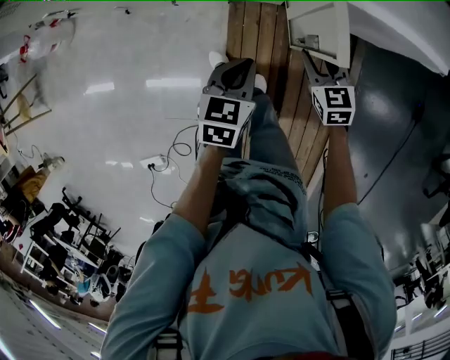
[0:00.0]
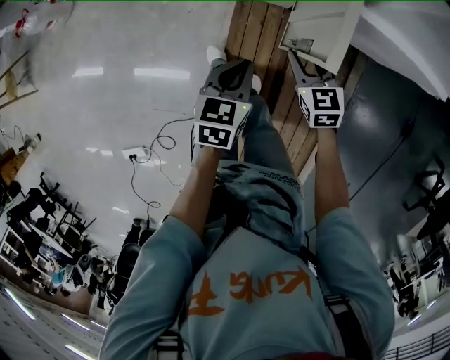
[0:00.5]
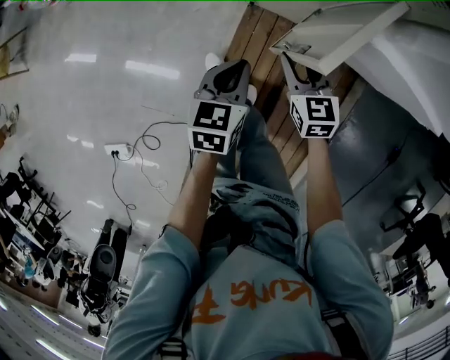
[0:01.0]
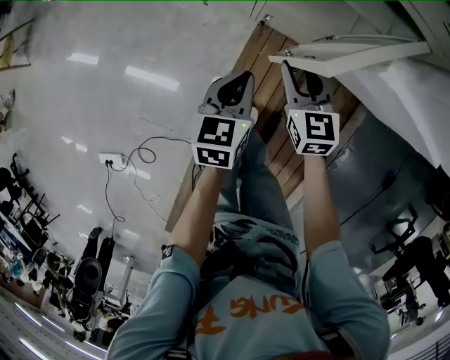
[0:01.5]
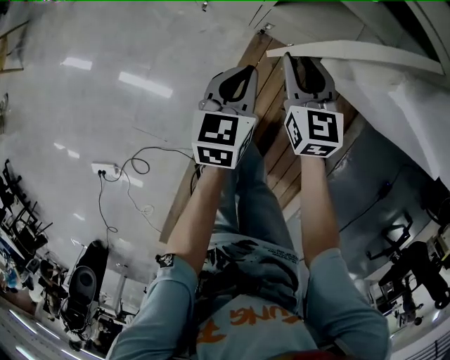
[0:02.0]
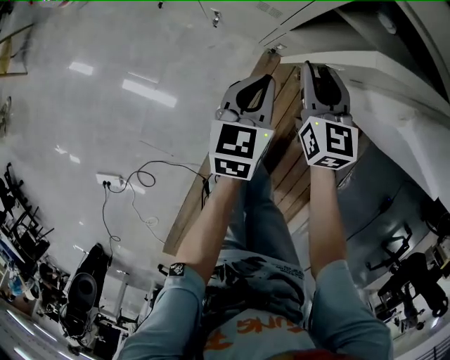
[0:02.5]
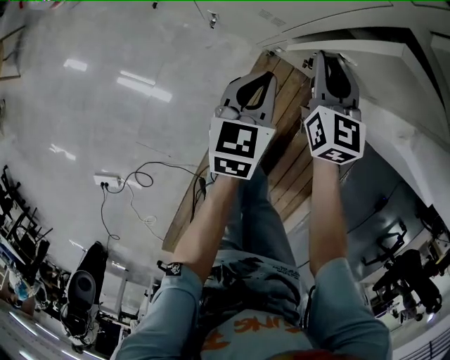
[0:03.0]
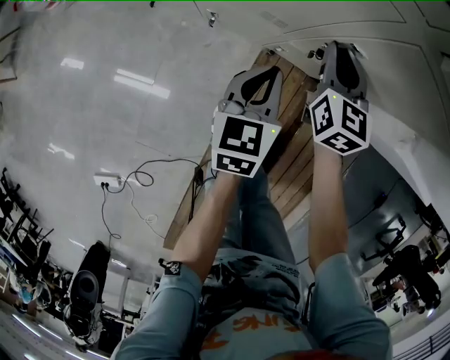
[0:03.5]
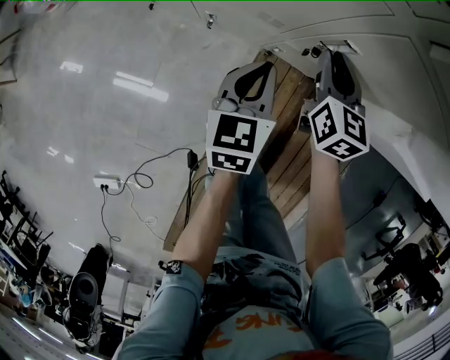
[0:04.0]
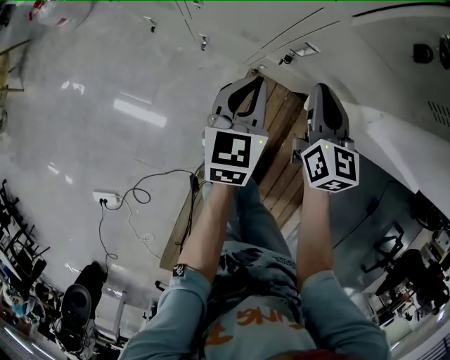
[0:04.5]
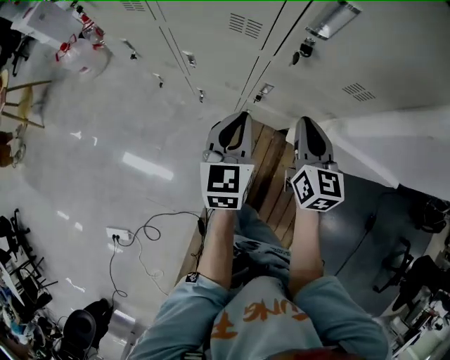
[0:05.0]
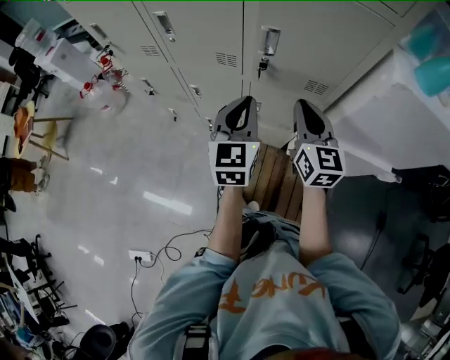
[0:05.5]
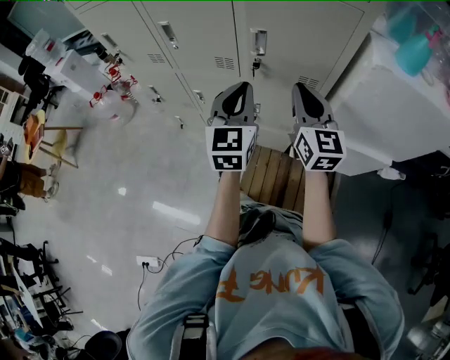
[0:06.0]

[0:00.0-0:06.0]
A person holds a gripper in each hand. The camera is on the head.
0:00.0 to 0:02.0: The right gripper moves to the left and forward, roughly 25 cm, while the left gripper travels to the left, forward and downward by some 20 cm, and turns by approximately 30 degrees.
0:02.0 to 0:04.0: The left gripper is displaced forward and to the left by roughly 15 cm. Meanwhile the right gripper is displaced forward by about 15 cm.
0:04.0 to 0:06.0: Both grippers move upward, some 50 cm. The left gripper changes its angle by about 40 degrees. Meanwhile the right gripper turns by roughly 30 degrees.

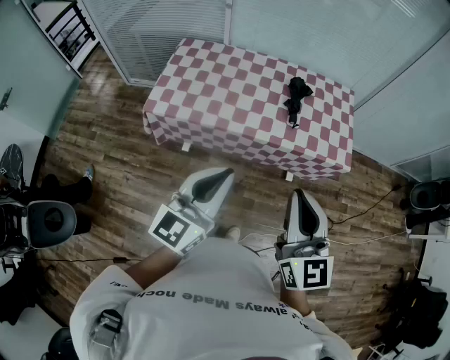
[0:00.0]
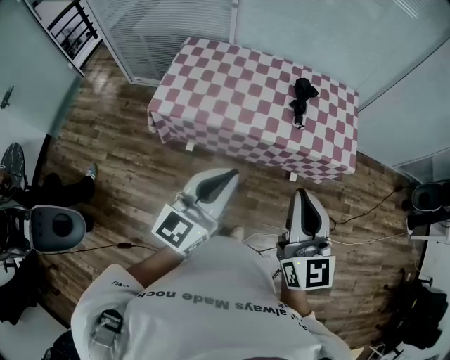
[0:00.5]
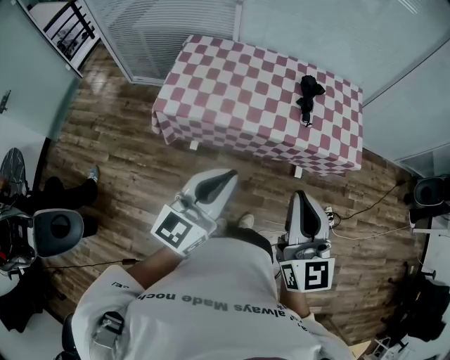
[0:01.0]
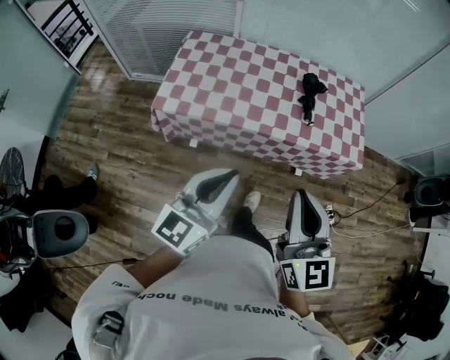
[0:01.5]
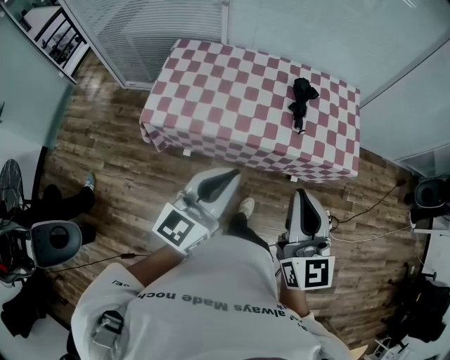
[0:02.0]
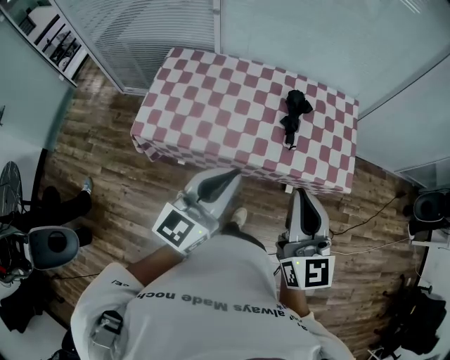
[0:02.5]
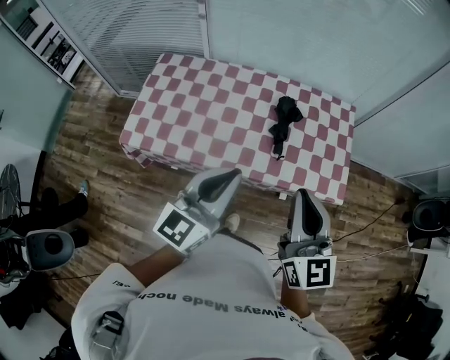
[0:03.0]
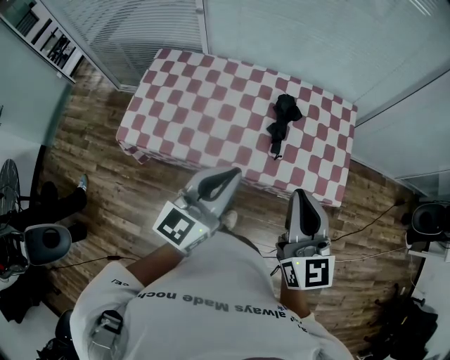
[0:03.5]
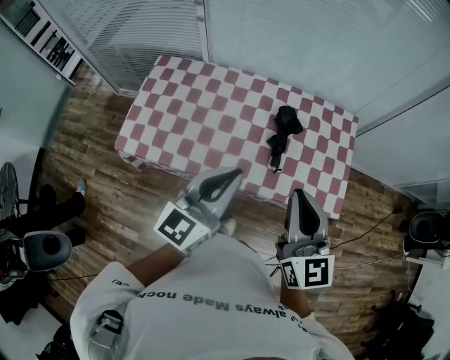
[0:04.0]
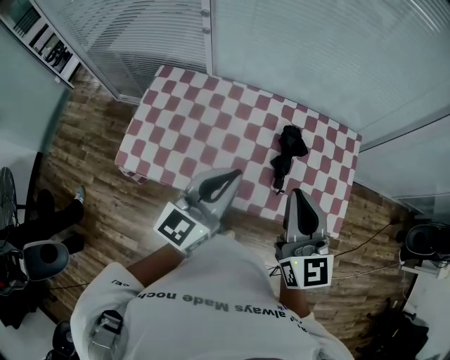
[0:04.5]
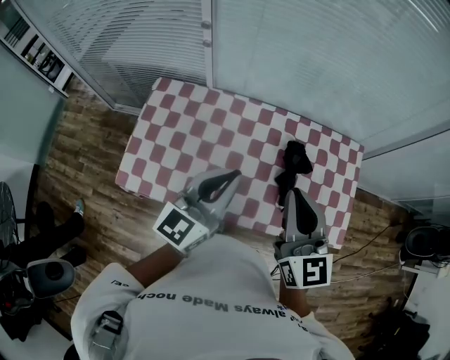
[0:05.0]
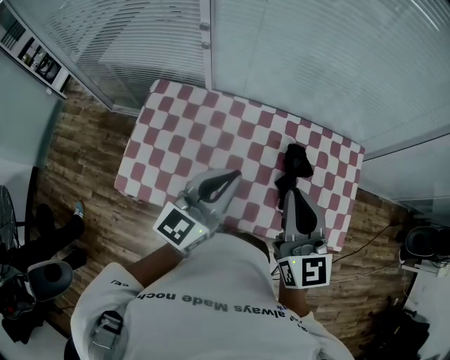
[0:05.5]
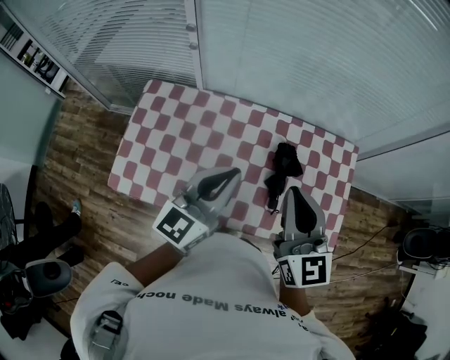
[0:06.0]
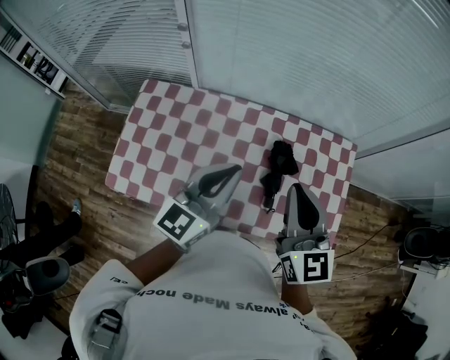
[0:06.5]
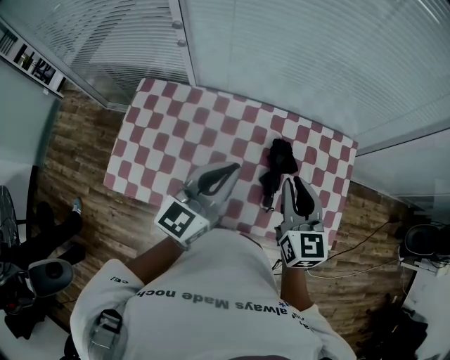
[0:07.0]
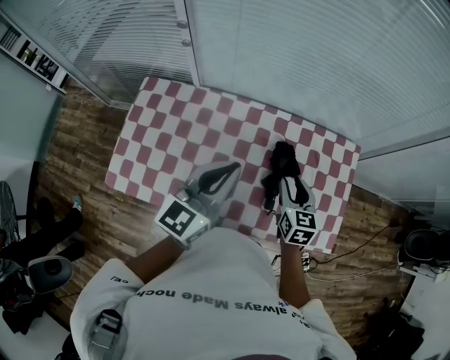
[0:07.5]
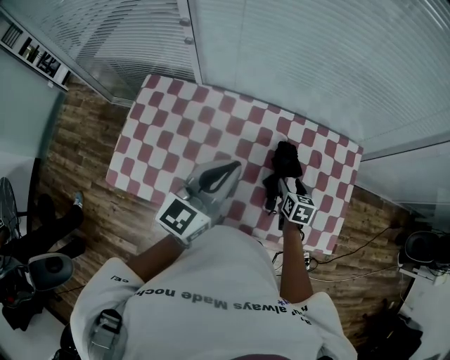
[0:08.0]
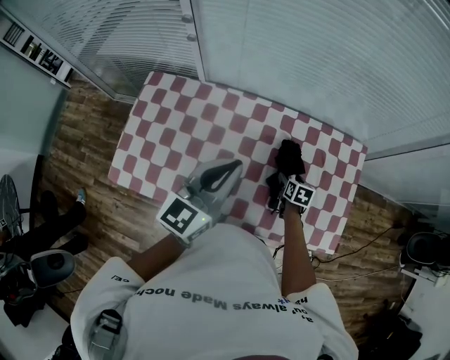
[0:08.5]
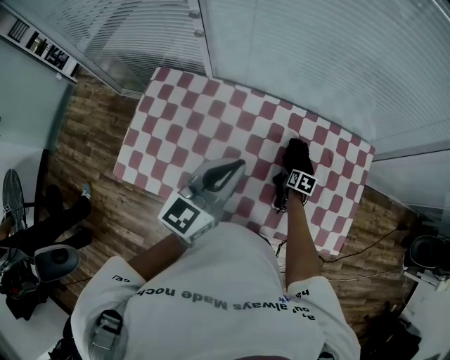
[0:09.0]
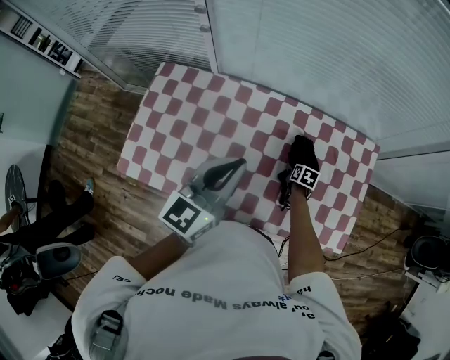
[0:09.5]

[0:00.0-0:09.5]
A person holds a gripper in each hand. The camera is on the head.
0:00.0 to 0:02.0: Both grippers move forward, about 10 cm.
0:02.0 to 0:04.0: The left gripper goes about 30 cm forward and to the right. Meanwhile the right gripper travels forward by roughly 25 cm.
0:04.0 to 0:05.5: The two grippers go some 25 cm forward and to the left.
0:05.5 to 0:07.5: The right gripper travels downward, to the right and forward by some 25 cm, turns by roughly 30 degrees, and opens up; the left gripper heads to the right and forward, covering approximately 10 cm.
0:07.5 to 0:09.5: The right gripper is displaced downward by about 25 cm, turns by approximately 40 degrees, and opens up.

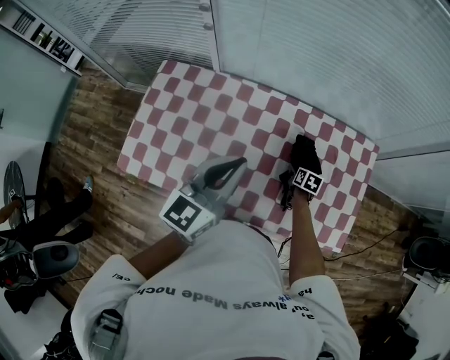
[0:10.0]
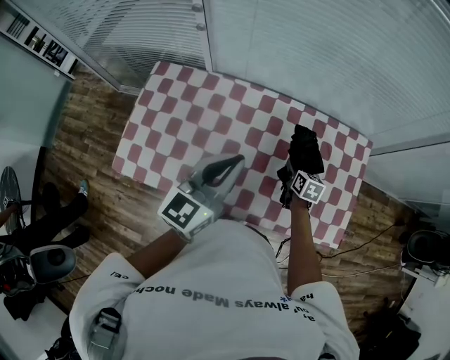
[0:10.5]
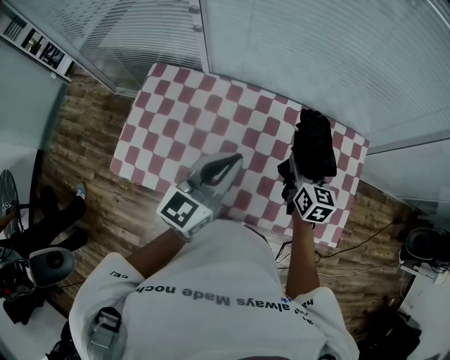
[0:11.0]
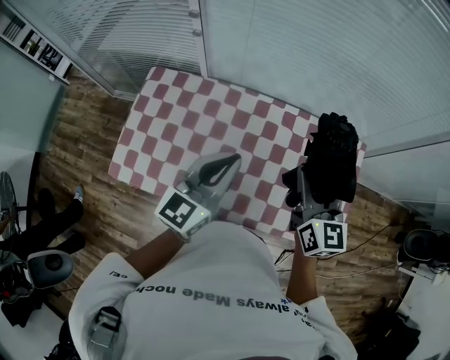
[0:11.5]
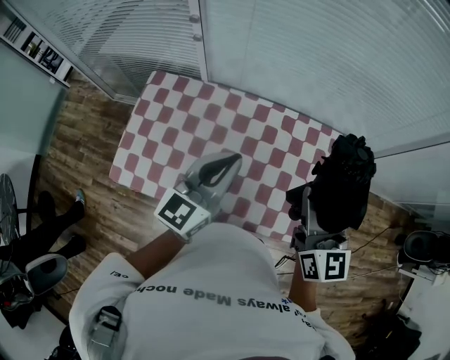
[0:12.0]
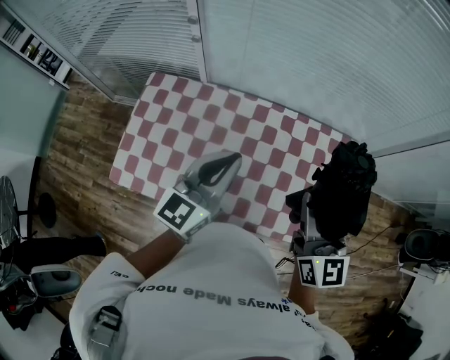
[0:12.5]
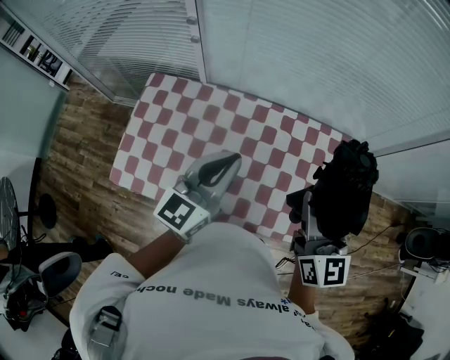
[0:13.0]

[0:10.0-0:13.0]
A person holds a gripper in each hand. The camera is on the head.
0:10.0 to 0:11.5: The right gripper travels upward by roughly 40 cm, and tilts its fingers approximately 50 degrees upward.
0:11.5 to 0:13.0: The right gripper is displaced upward by roughly 5 cm.

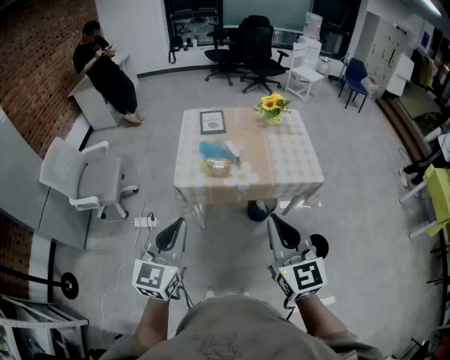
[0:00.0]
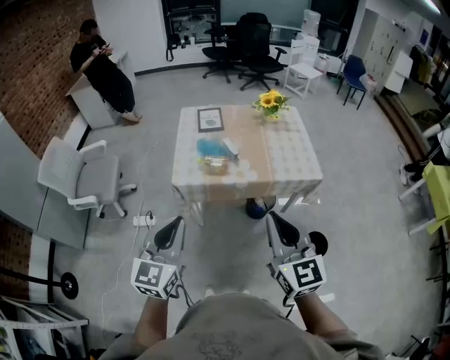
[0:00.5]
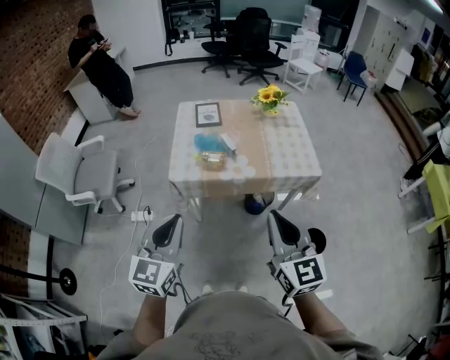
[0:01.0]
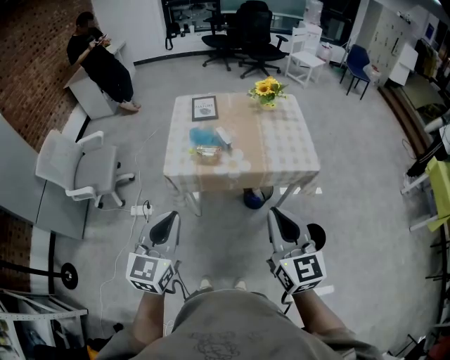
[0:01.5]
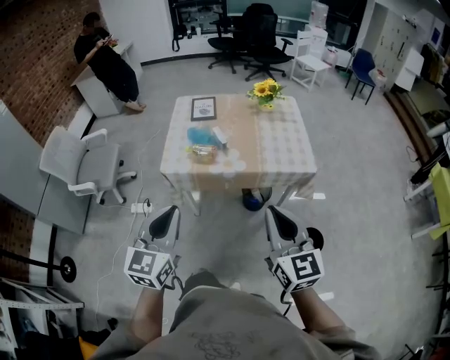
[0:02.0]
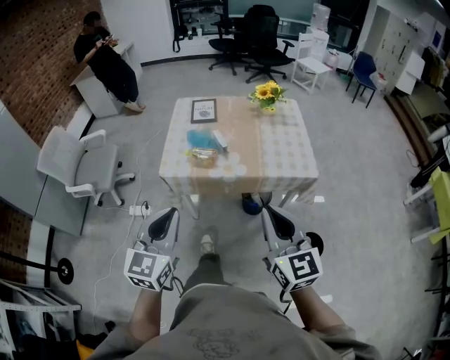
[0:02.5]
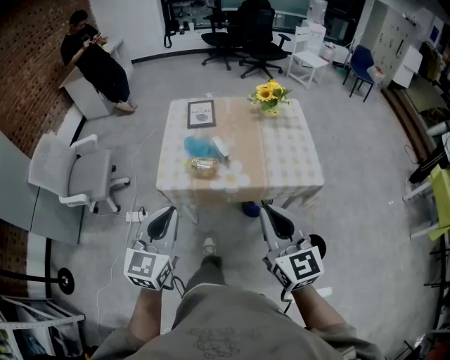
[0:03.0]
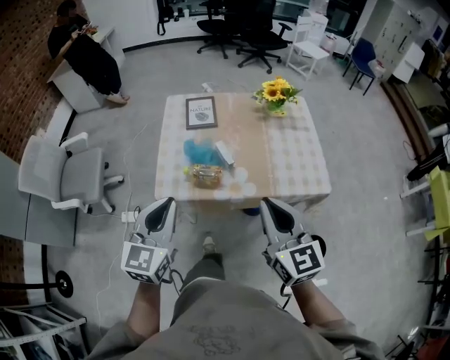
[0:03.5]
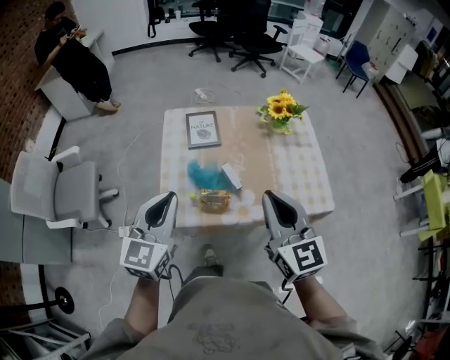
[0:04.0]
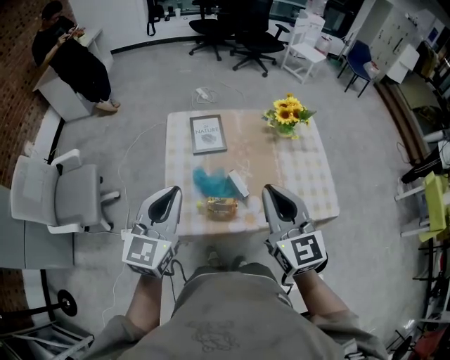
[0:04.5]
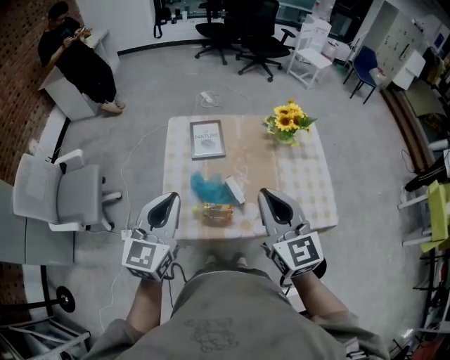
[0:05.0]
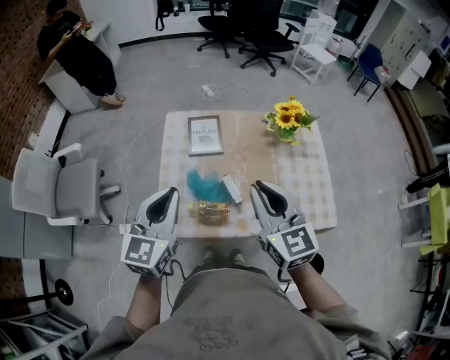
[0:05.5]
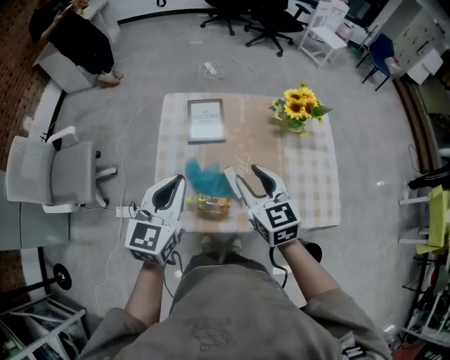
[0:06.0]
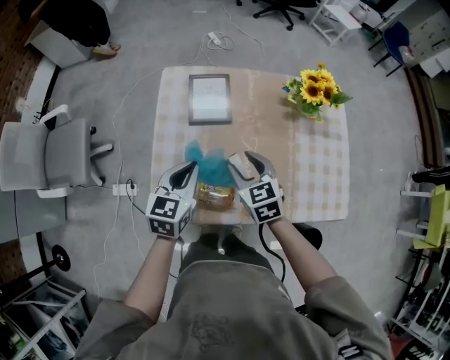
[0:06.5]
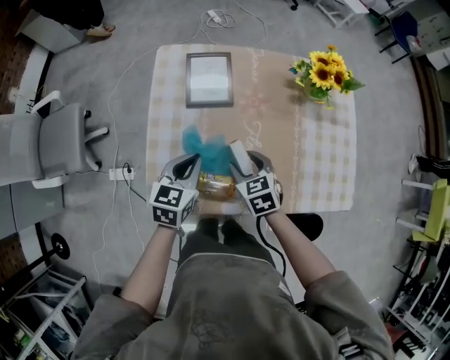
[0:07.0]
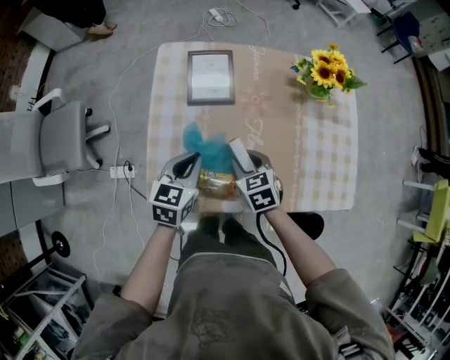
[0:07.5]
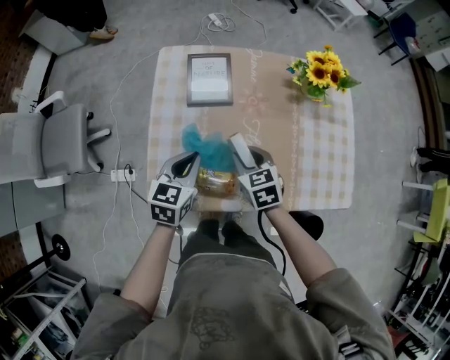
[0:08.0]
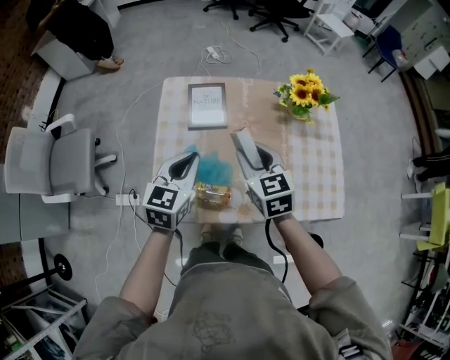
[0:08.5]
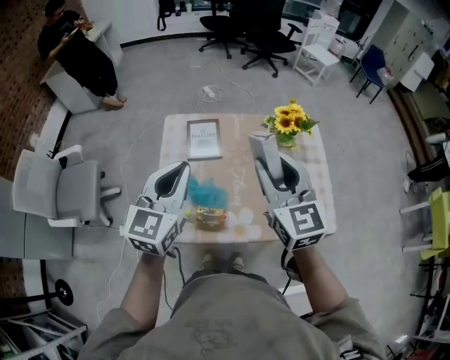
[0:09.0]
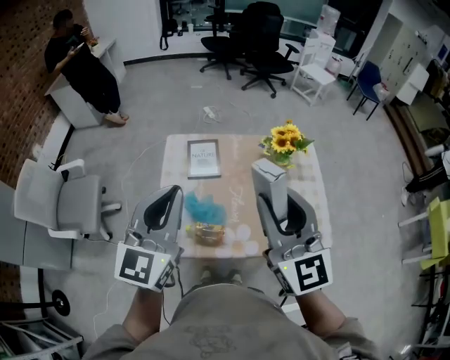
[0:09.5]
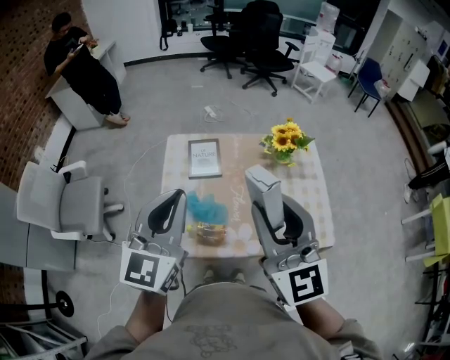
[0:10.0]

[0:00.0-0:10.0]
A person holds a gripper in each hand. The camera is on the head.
0:00.0 to 0:02.0: Both grippers travel together to the right, approximately 10 cm.
0:02.0 to 0:04.0: The two grippers go some 35 cm forward.
0:04.0 to 0:06.0: The left gripper is displaced forward by some 10 cm. Meanwhile the right gripper heads forward and downward, covering about 20 cm, swivels some 20 degrees, and opens.
0:06.0 to 0:08.0: The grippers both shift downward by approximately 20 cm. The right gripper turns by approximately 20 degrees.
0:08.0 to 0:10.0: The grippers both shift upward by roughly 40 cm. The right gripper tips its fingers upward by about 50 degrees. Meanwhile the left gripper tips its fingers upward by about 30 degrees.
